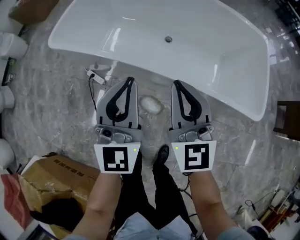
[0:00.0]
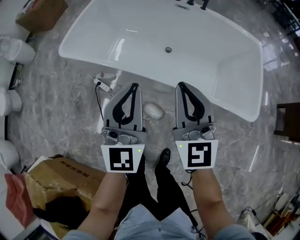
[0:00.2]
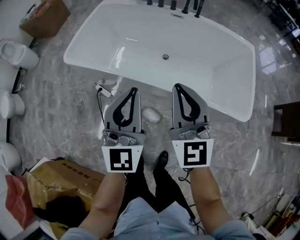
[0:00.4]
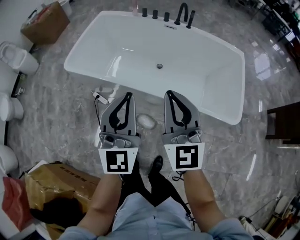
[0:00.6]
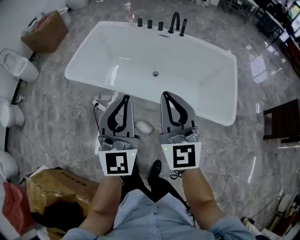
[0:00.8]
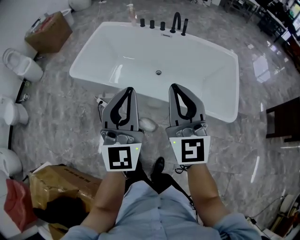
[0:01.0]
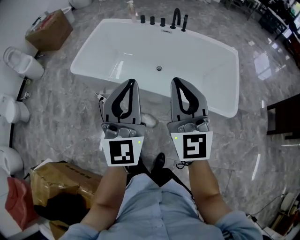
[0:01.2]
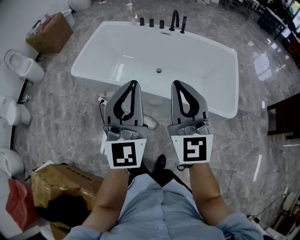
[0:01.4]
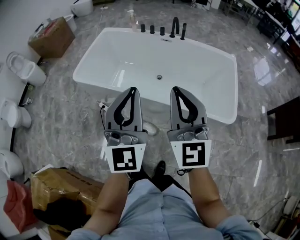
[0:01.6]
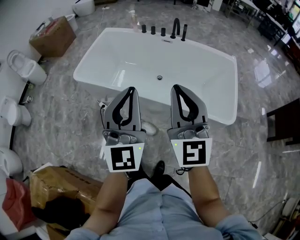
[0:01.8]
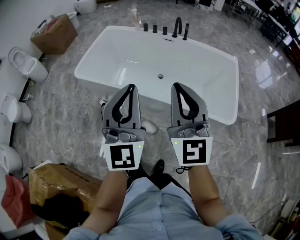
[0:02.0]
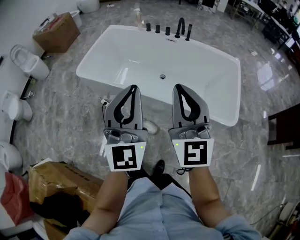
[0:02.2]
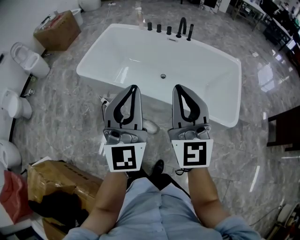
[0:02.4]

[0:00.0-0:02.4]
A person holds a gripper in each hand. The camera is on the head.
0.0 to 1.2 s: Both grippers move upward and backward, about 30 cm.
1.2 to 2.4 s: The grippers make only small movements.

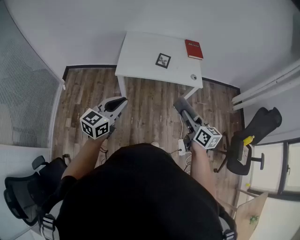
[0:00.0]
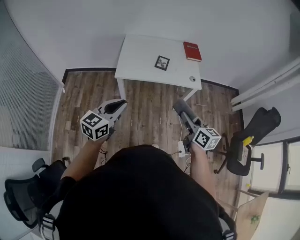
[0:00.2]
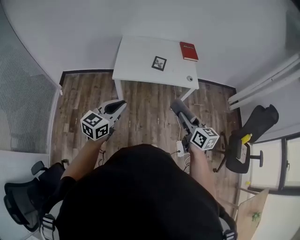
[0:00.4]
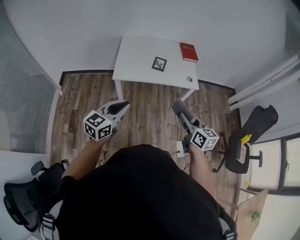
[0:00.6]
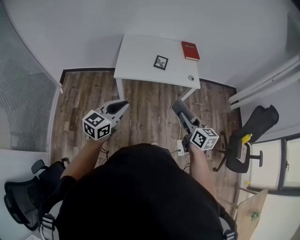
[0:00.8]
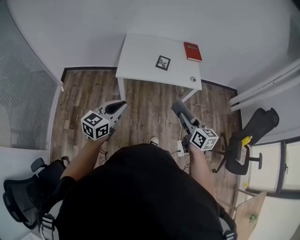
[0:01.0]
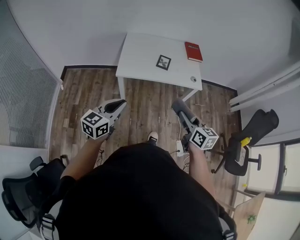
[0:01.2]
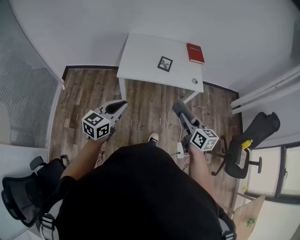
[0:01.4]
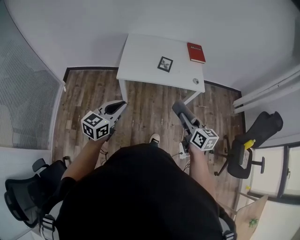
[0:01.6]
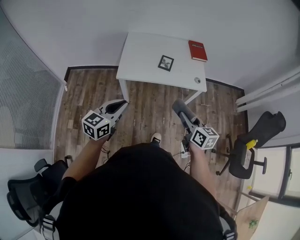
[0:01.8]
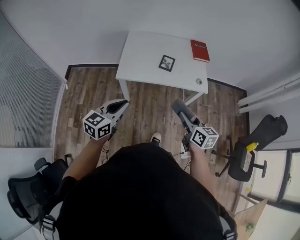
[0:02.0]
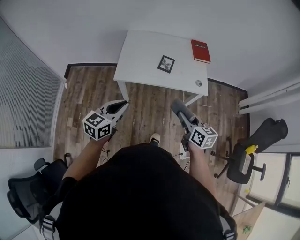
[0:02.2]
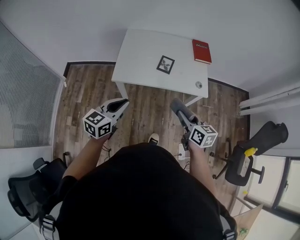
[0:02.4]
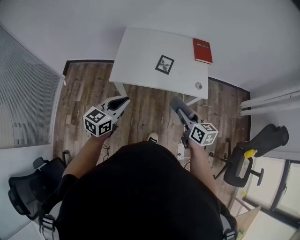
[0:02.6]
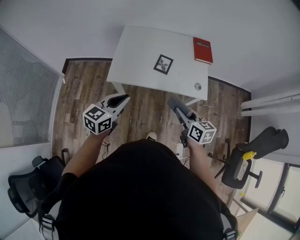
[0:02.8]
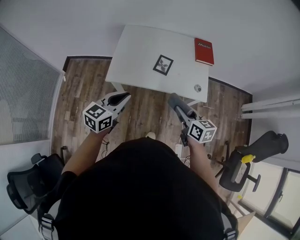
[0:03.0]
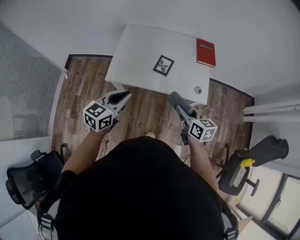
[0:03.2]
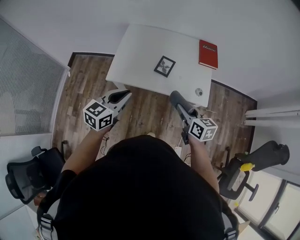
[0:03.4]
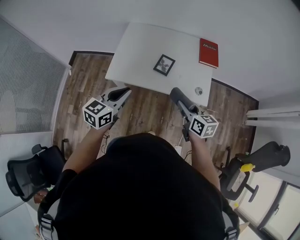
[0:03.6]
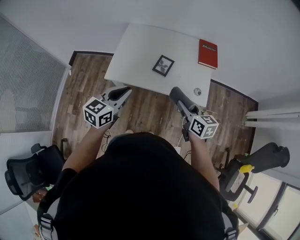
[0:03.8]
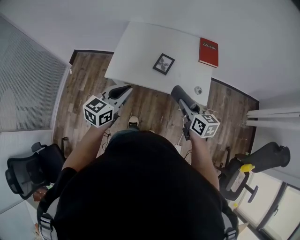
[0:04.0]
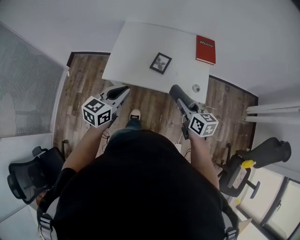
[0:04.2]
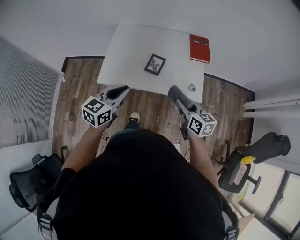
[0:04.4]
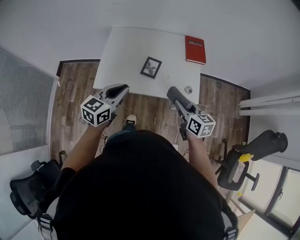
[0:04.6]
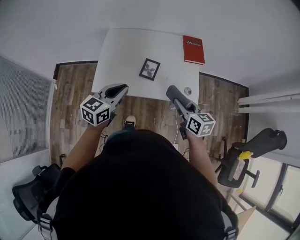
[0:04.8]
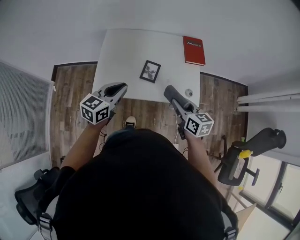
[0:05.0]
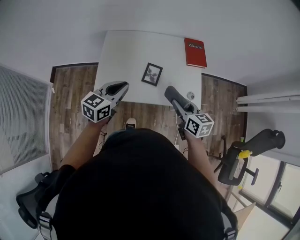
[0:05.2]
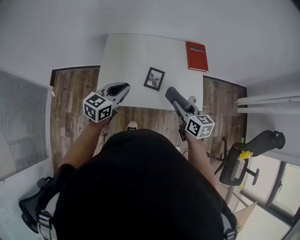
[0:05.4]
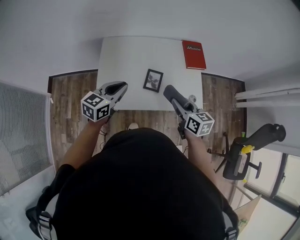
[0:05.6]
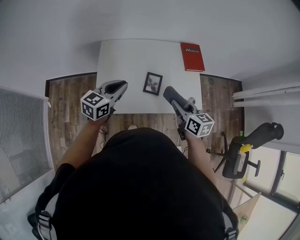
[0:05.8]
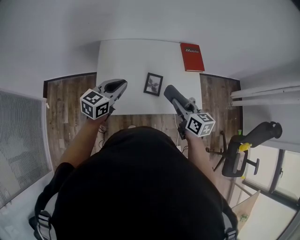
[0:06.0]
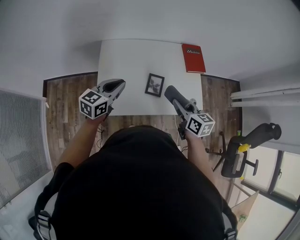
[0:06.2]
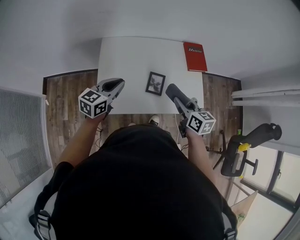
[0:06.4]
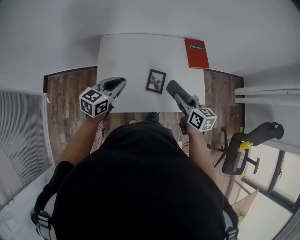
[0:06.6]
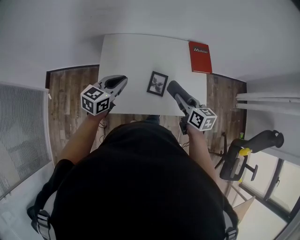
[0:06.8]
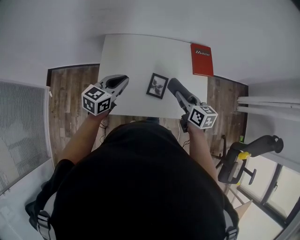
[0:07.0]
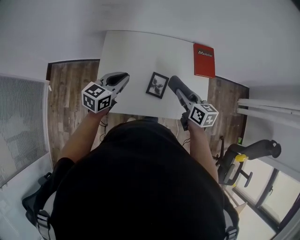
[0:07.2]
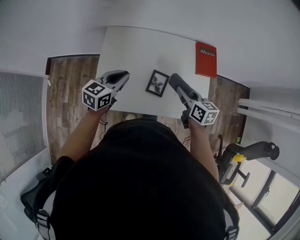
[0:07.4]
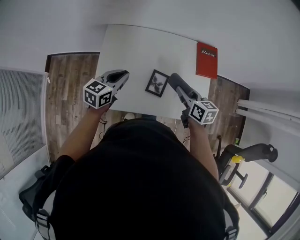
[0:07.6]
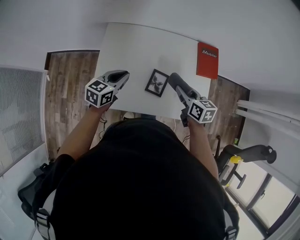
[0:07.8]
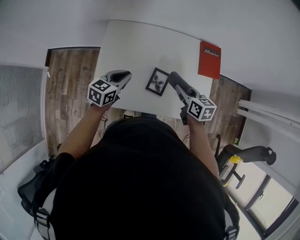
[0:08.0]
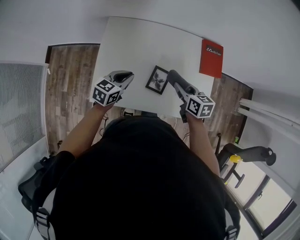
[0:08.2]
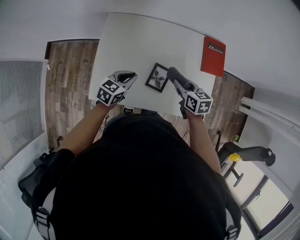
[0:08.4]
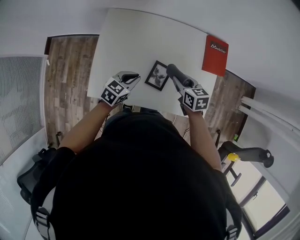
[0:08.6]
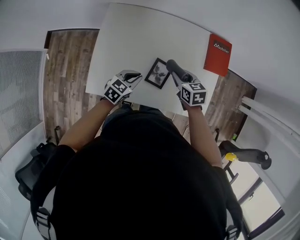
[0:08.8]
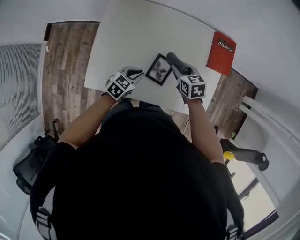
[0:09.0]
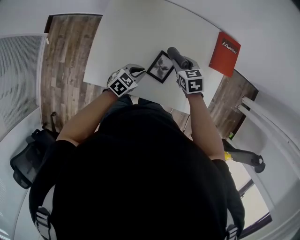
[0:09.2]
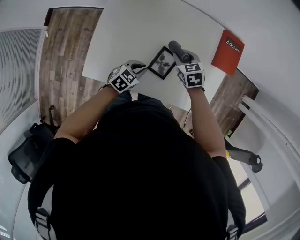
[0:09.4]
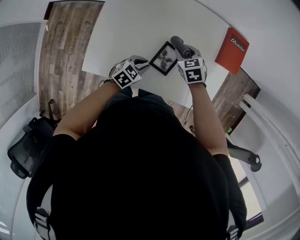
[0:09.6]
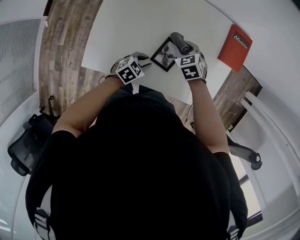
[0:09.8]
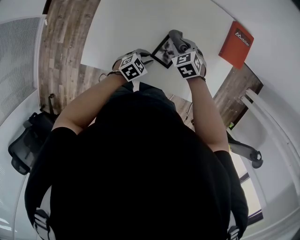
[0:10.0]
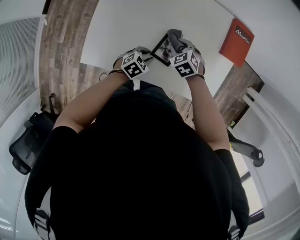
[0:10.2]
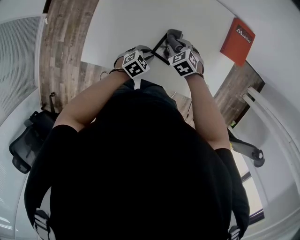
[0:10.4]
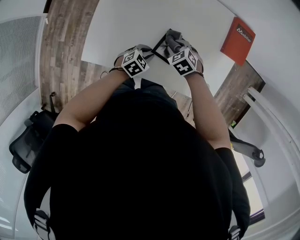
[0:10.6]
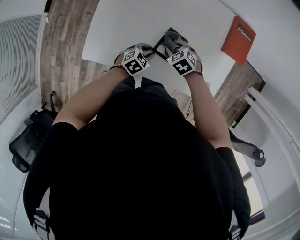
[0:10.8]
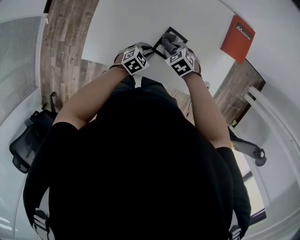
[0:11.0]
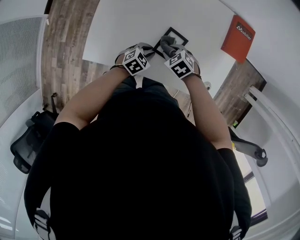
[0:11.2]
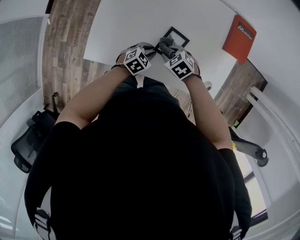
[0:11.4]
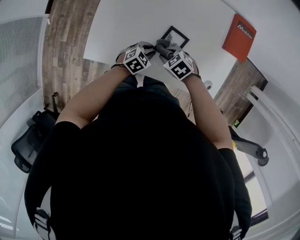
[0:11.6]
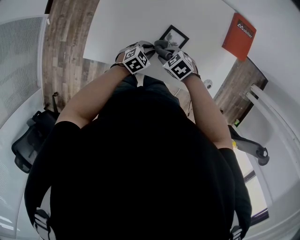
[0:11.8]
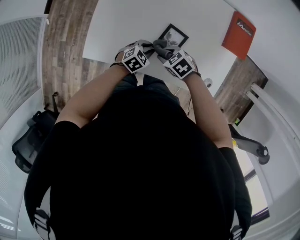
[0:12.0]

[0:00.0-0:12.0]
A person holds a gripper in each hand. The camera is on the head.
0.0 to 1.6 s: The grippers stay close to where they were, moving slightly.
1.6 to 3.0 s: The left gripper moves forward and to the right, some 20 cm; the right gripper is displaced forward by approximately 20 cm.
3.0 to 4.4 s: Both grippers travel together to the right and forward, some 10 cm.
4.4 to 6.0 s: Both grippers travel together forward and to the left, about 20 cm.
6.0 to 7.6 s: The left gripper travels downward and forward by approximately 10 cm; the right gripper travels forward and downward by about 15 cm.
7.6 to 9.0 s: The left gripper heads downward and to the right, covering some 20 cm, and changes its angle by approximately 20 degrees. The right gripper shifts some 15 cm downward and forward, and turns by some 30 degrees.
9.0 to 10.4 s: The grippers both shift downward by roughly 10 cm. The right gripper swivels some 40 degrees.
10.4 to 12.0 s: The right gripper moves roughly 10 cm, and changes its angle by approximately 20 degrees.

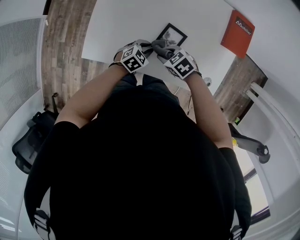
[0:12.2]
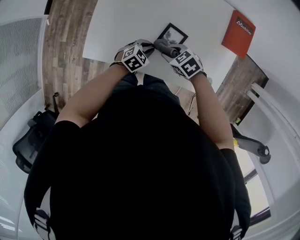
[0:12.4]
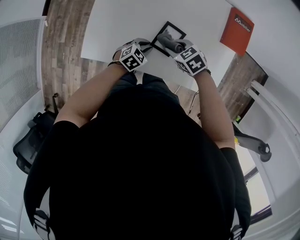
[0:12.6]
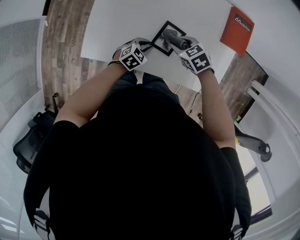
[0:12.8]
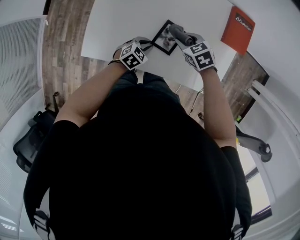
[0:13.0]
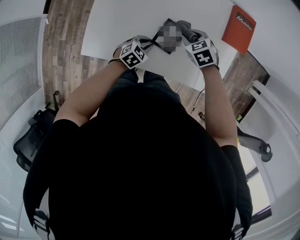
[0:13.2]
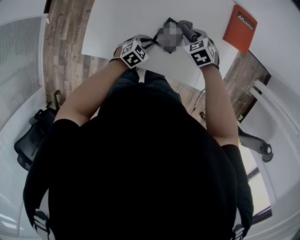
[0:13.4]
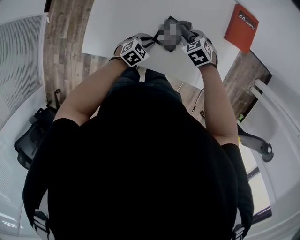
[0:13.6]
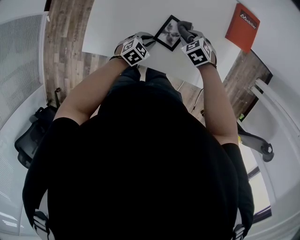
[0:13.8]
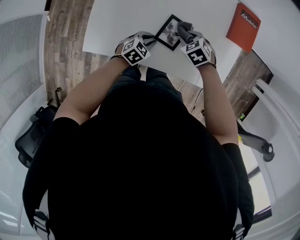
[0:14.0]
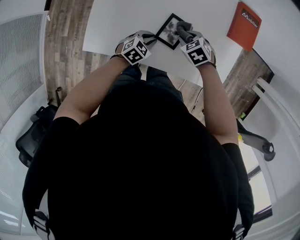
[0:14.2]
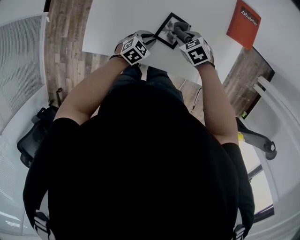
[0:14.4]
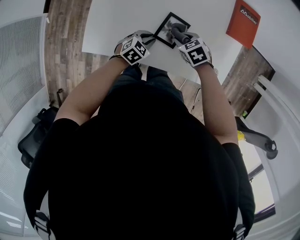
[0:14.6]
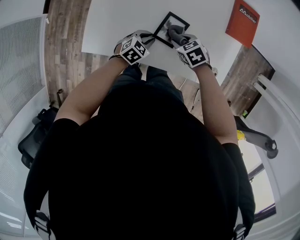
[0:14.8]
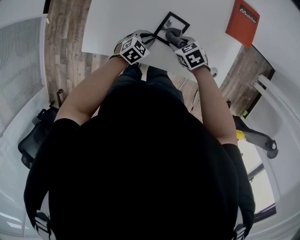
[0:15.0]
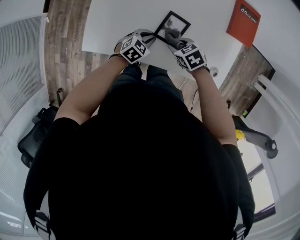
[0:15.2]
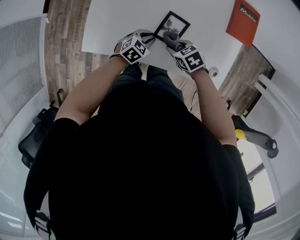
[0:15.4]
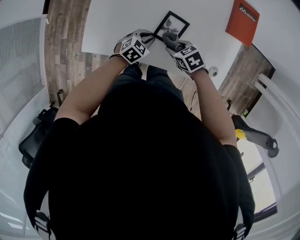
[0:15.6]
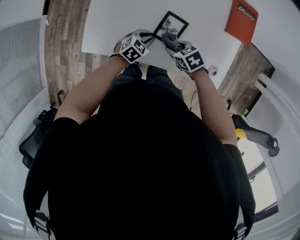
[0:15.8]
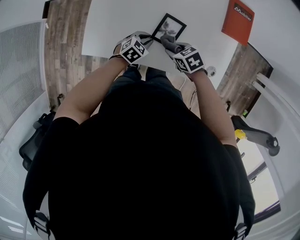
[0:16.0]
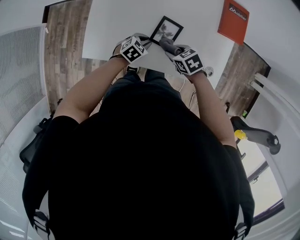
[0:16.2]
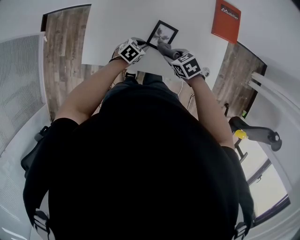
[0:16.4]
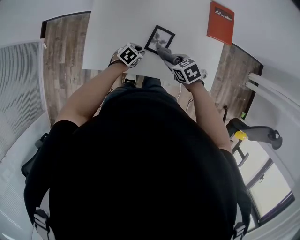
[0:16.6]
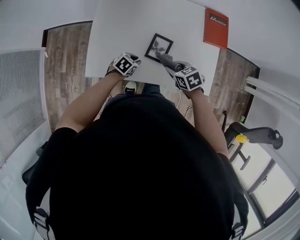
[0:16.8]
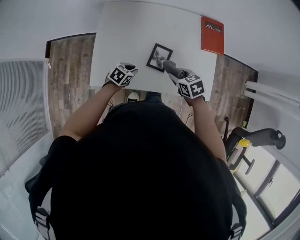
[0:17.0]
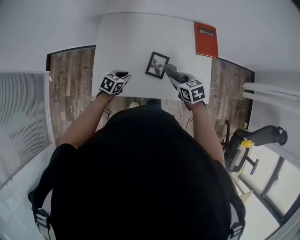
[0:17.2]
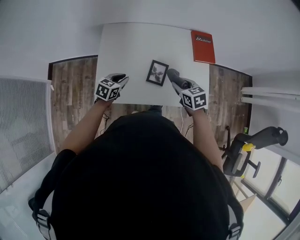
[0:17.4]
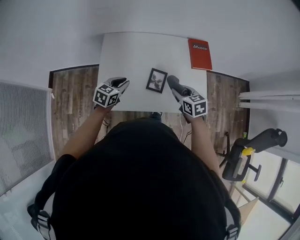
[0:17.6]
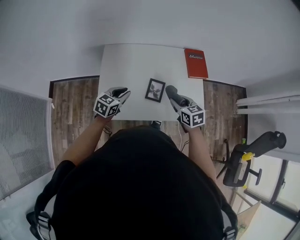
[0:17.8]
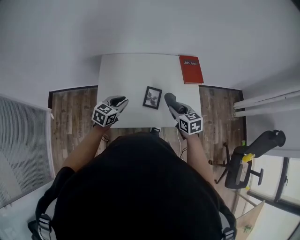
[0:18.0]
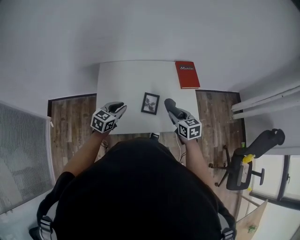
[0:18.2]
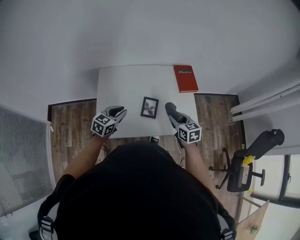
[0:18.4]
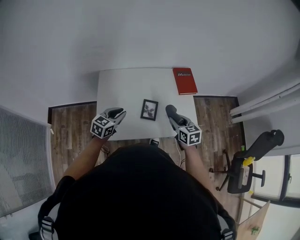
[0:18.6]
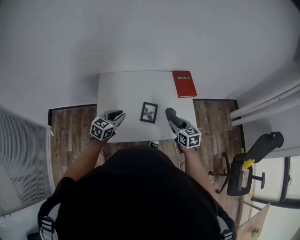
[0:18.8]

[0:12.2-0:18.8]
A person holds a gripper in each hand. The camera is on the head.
12.2 to 13.8 s: The right gripper ends up about 10 cm from where it was, and turns by about 20 degrees.
13.8 to 15.4 s: The right gripper moves about 10 cm, and changes its angle by about 20 degrees.
15.4 to 17.2 s: The right gripper moves upward, about 15 cm, and swivels some 30 degrees. The left gripper ends up approximately 15 cm from where it was.
17.2 to 18.8 s: The left gripper goes about 20 cm upward, and swivels approximately 20 degrees. Meanwhile the right gripper goes about 10 cm upward, and rotates about 30 degrees.

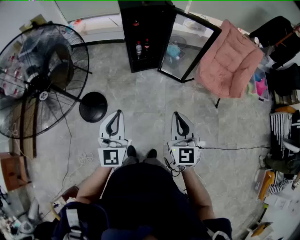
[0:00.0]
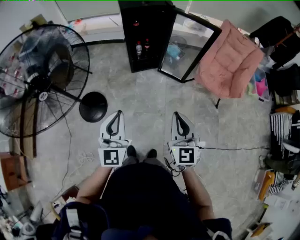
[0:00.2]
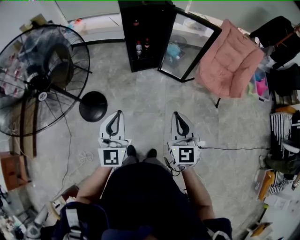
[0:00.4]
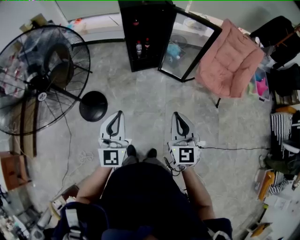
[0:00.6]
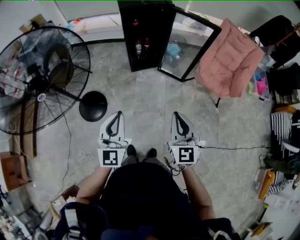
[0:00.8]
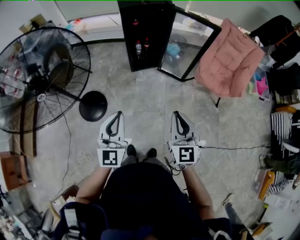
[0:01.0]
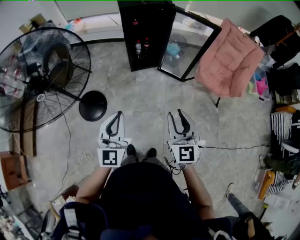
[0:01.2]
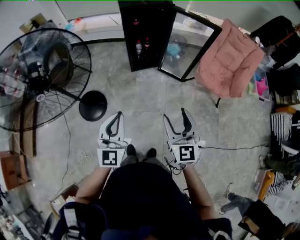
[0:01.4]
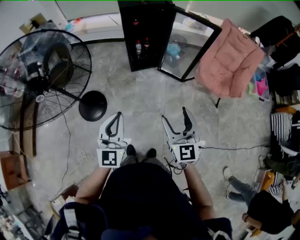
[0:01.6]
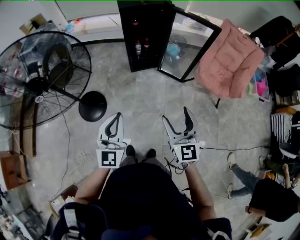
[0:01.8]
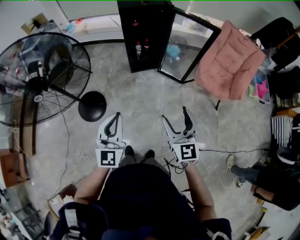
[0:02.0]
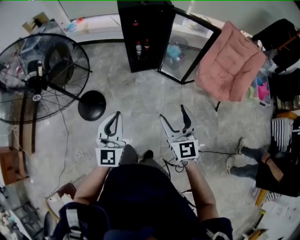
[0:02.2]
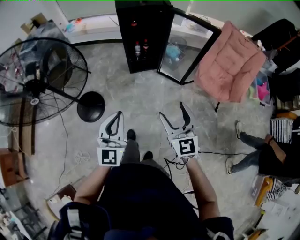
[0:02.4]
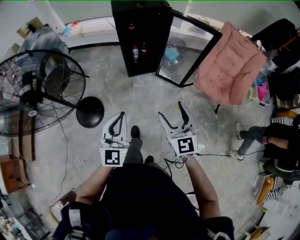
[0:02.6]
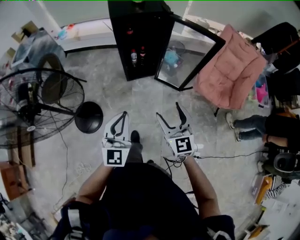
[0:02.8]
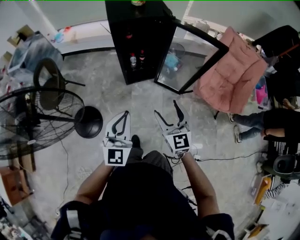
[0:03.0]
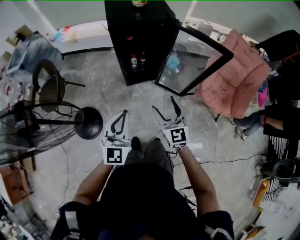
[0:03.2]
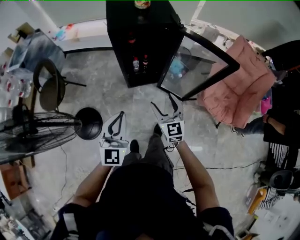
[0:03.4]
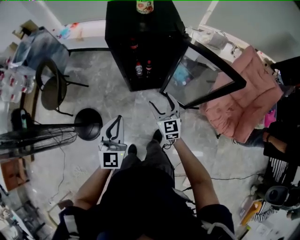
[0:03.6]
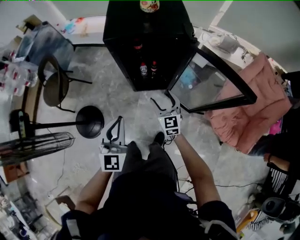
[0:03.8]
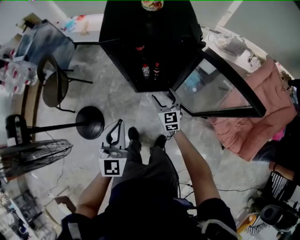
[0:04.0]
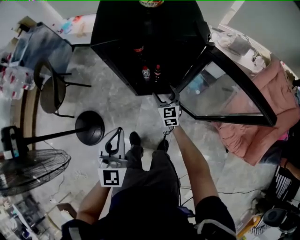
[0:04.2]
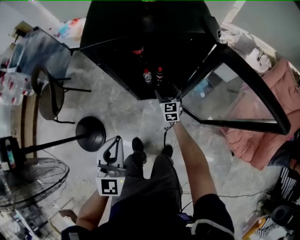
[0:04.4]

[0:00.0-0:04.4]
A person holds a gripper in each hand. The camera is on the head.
0.0 to 1.4 s: The right gripper opens.
1.4 to 3.0 s: The two grippers go some 25 cm forward.
3.0 to 4.4 s: The right gripper travels forward and downward by about 70 cm. Meanwhile the left gripper is displaced forward and downward by approximately 35 cm.
